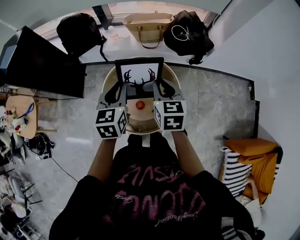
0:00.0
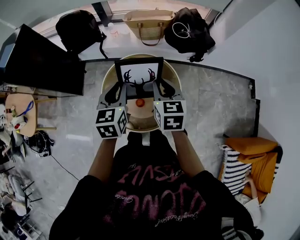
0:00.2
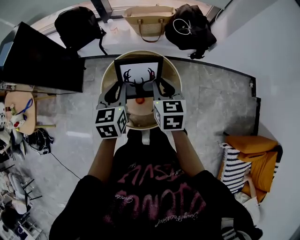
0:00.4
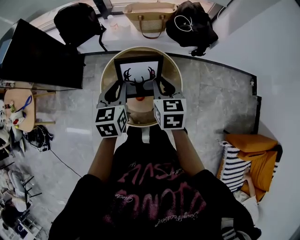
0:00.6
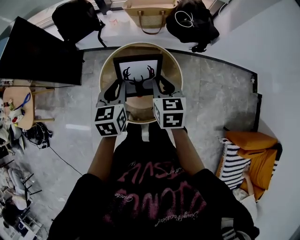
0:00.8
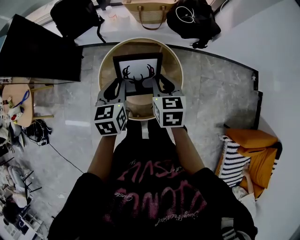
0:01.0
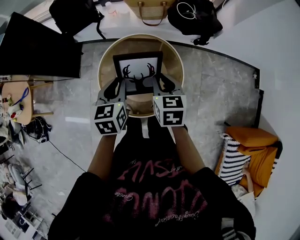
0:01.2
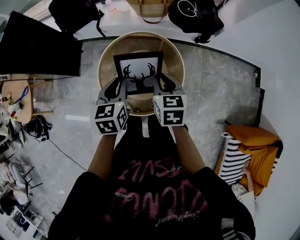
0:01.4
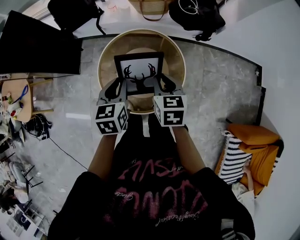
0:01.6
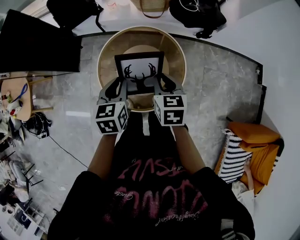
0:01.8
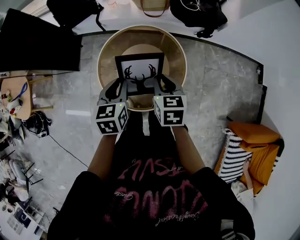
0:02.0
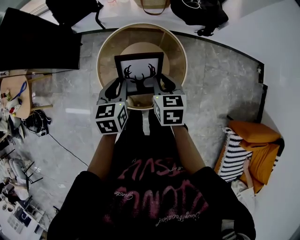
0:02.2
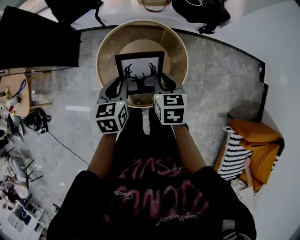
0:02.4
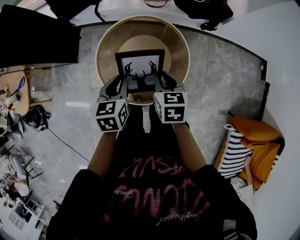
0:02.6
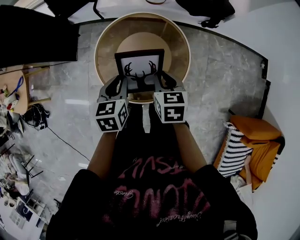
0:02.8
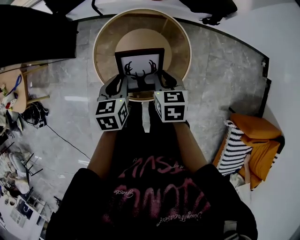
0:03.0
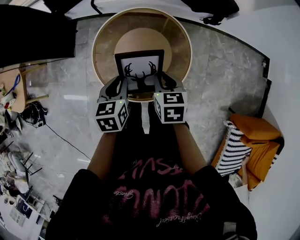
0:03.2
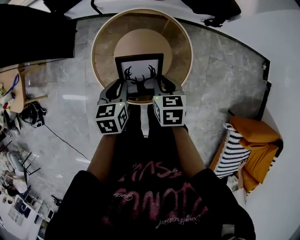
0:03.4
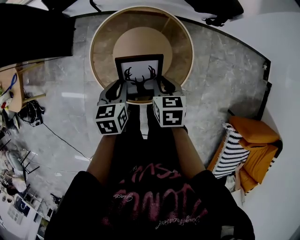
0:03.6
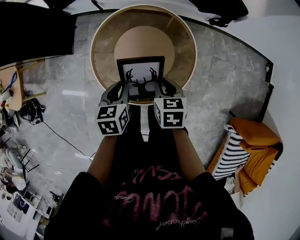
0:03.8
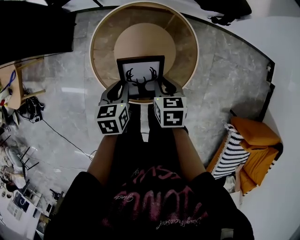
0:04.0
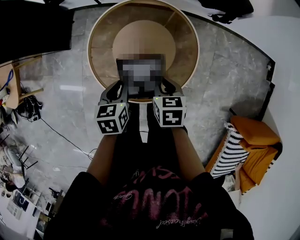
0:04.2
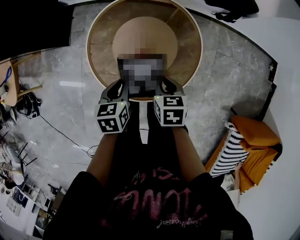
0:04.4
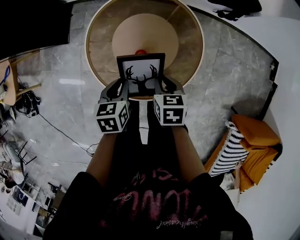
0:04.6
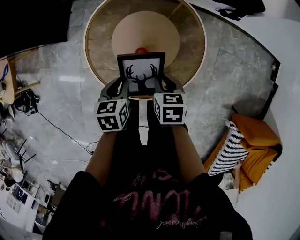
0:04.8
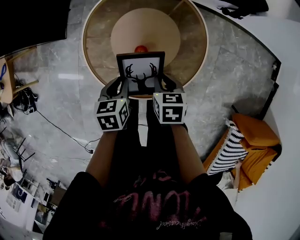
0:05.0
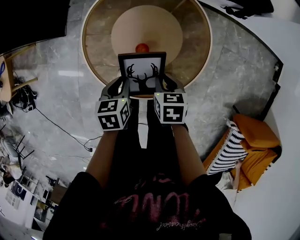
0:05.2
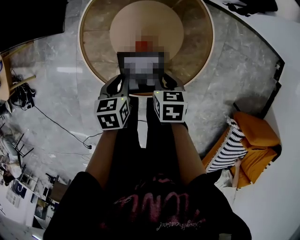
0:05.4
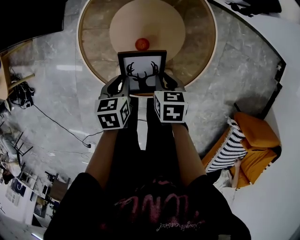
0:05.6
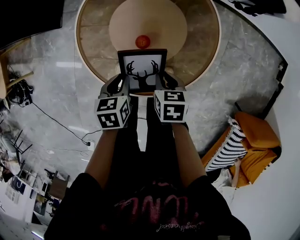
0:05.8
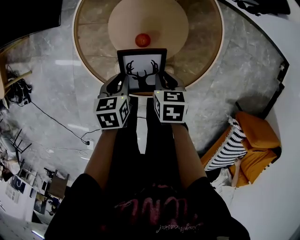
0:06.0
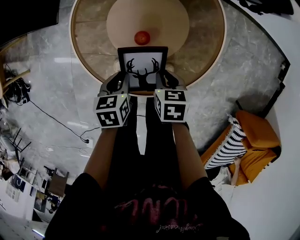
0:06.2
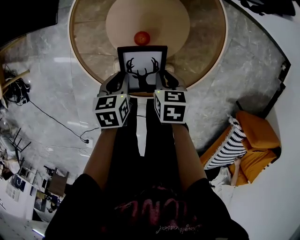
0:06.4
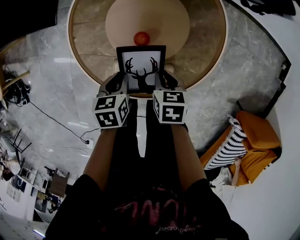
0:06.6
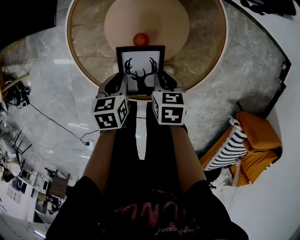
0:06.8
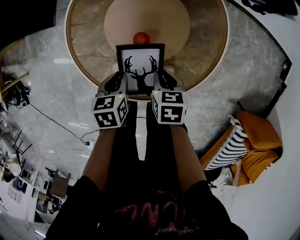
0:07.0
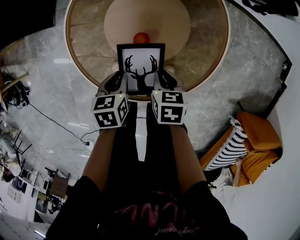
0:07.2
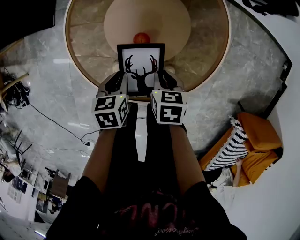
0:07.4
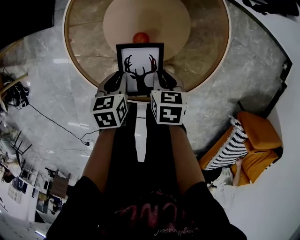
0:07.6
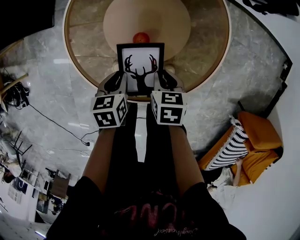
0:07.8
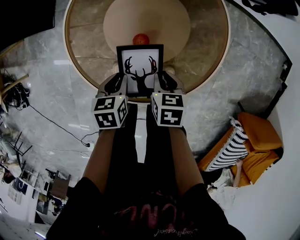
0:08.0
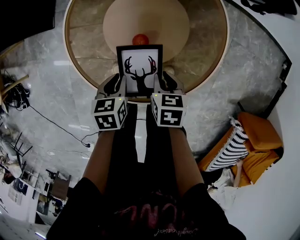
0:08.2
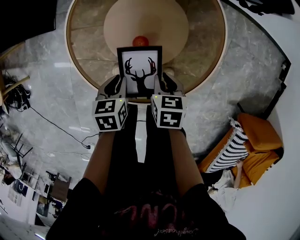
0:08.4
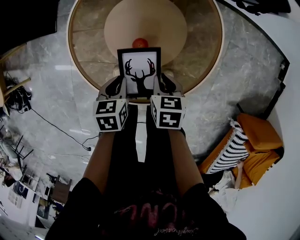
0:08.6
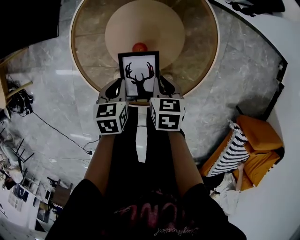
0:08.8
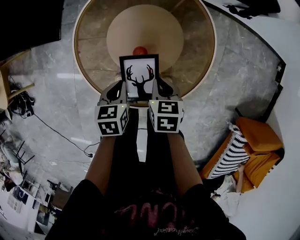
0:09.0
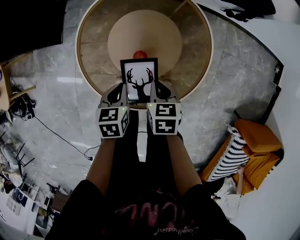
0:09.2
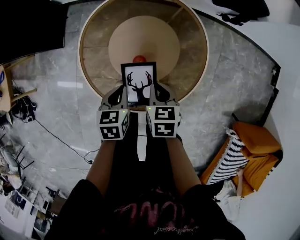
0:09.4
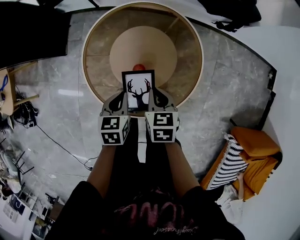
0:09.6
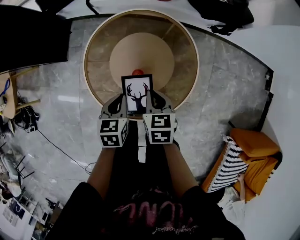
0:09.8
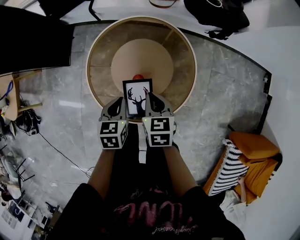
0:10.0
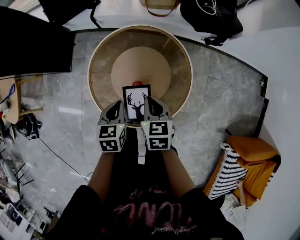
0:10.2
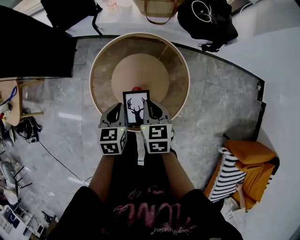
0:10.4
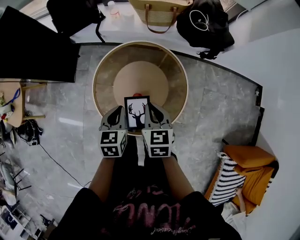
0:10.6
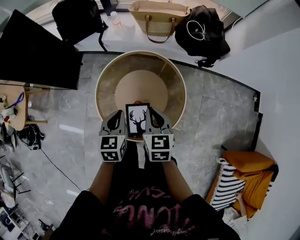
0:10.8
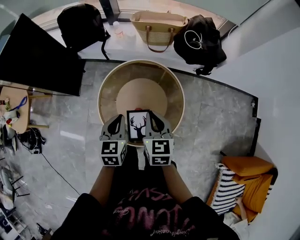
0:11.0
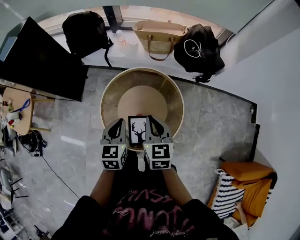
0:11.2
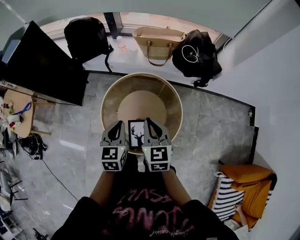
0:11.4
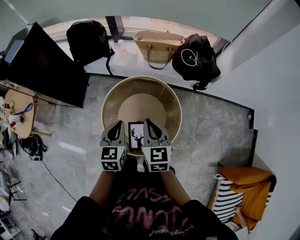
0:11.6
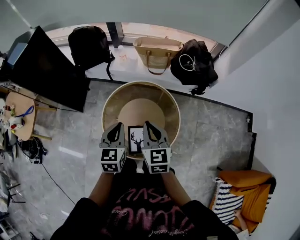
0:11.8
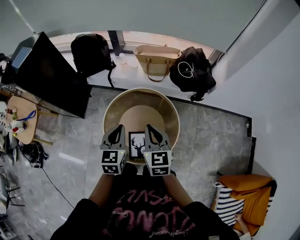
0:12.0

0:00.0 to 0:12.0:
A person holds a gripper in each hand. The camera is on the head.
0:00.0 to 0:01.6: The left gripper moves downward and backward, some 10 cm. Meanwhile the right gripper heads downward, covering about 10 cm.
0:01.6 to 0:03.0: The two grippers go about 10 cm downward.
0:03.0 to 0:04.4: The two grippers go about 10 cm downward.
0:04.4 to 0:06.0: The grippers both shift downward by some 15 cm.
0:06.0 to 0:07.6: The grippers stay close to where they were, moving slightly.
0:07.6 to 0:09.0: The two grippers go about 5 cm upward.
0:09.0 to 0:10.4: Both grippers move upward, about 20 cm. The right gripper changes its angle by some 20 degrees.
0:10.4 to 0:12.0: Both grippers travel together upward, roughly 20 cm. The left gripper rotates some 20 degrees; the right gripper rotates roughly 20 degrees.

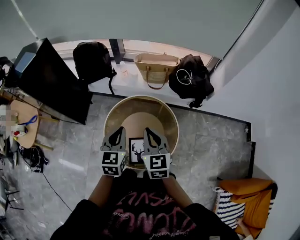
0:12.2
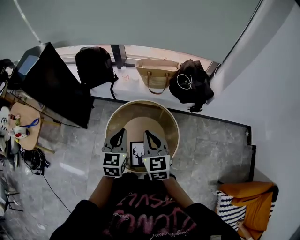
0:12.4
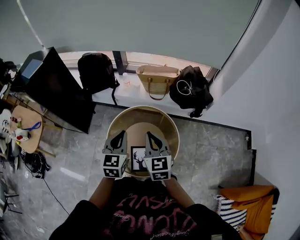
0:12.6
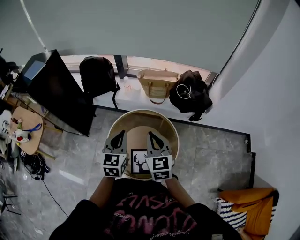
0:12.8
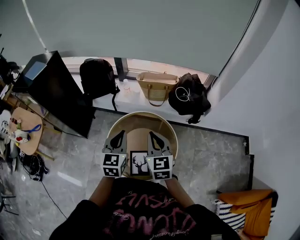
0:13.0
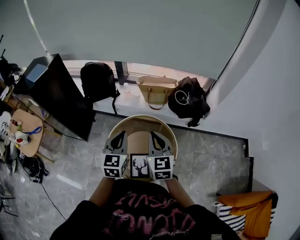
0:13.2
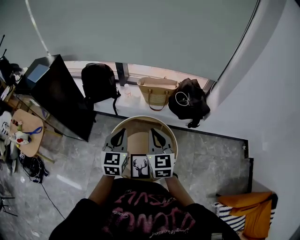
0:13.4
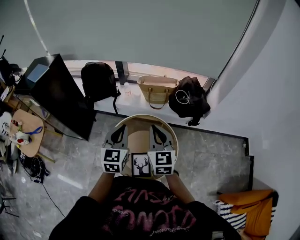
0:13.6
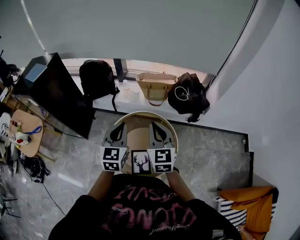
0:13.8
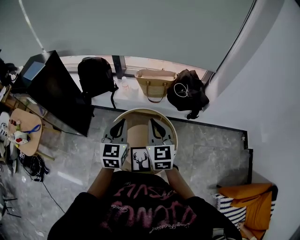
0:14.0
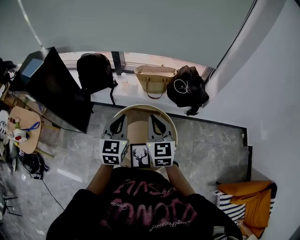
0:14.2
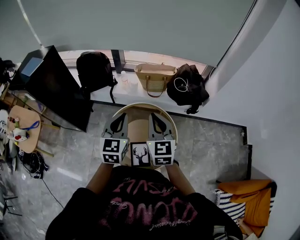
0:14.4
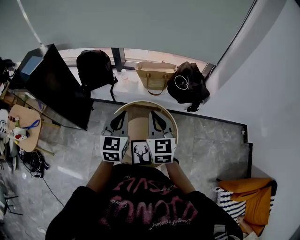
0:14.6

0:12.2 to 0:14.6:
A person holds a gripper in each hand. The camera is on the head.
0:12.2 to 0:13.4: The two grippers go about 10 cm upward.
0:13.4 to 0:14.6: There are only small adjustments of the grippers.

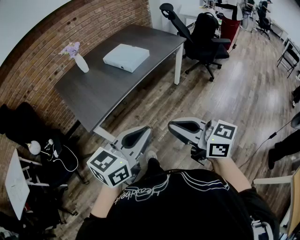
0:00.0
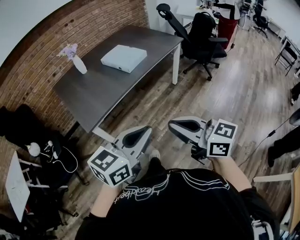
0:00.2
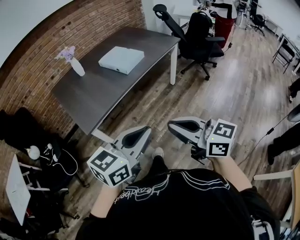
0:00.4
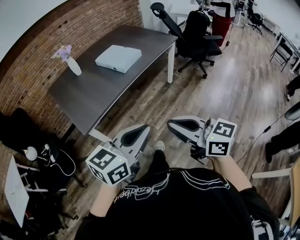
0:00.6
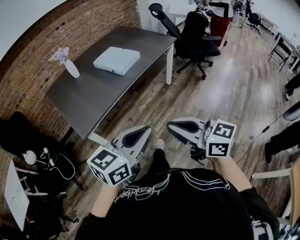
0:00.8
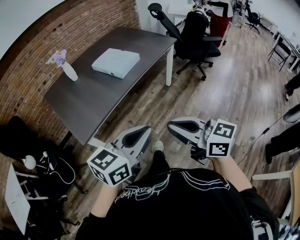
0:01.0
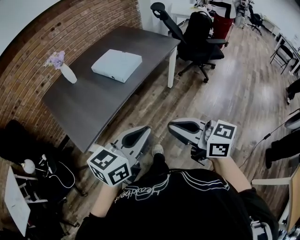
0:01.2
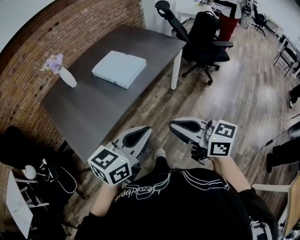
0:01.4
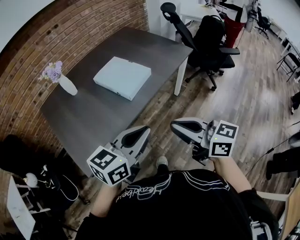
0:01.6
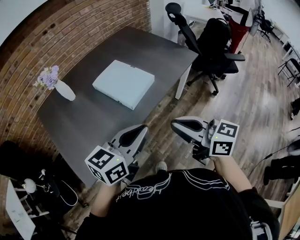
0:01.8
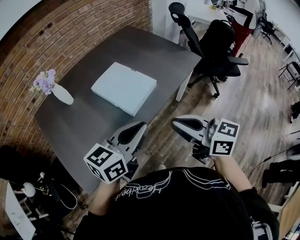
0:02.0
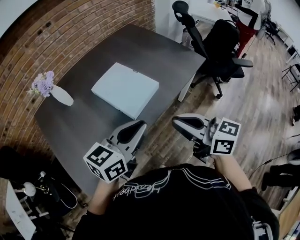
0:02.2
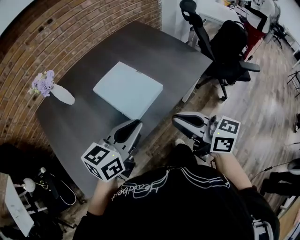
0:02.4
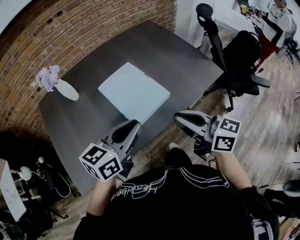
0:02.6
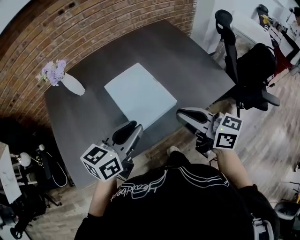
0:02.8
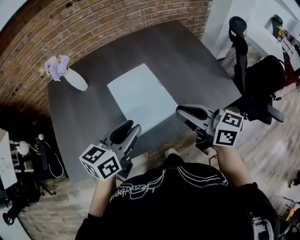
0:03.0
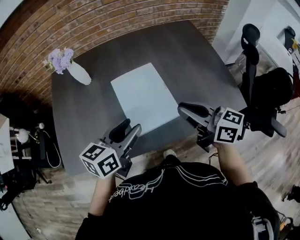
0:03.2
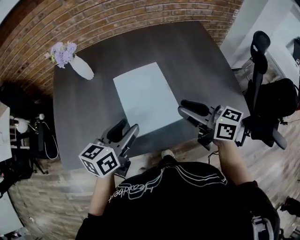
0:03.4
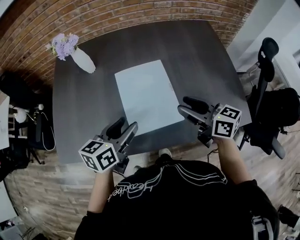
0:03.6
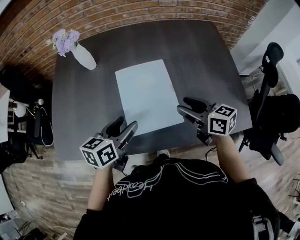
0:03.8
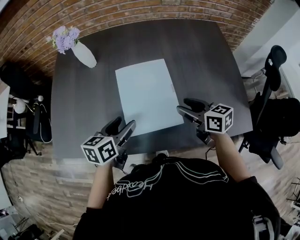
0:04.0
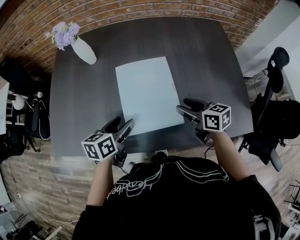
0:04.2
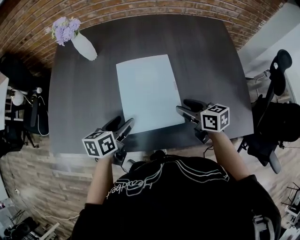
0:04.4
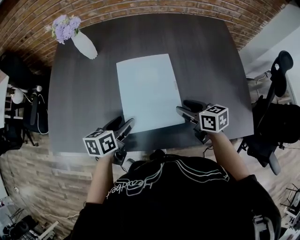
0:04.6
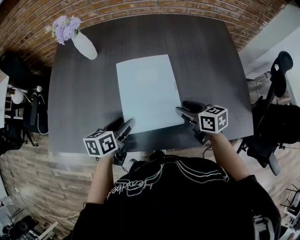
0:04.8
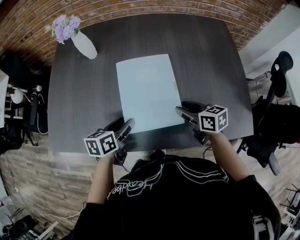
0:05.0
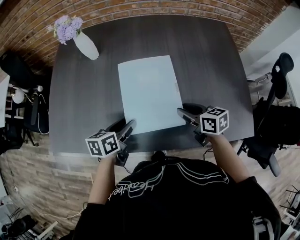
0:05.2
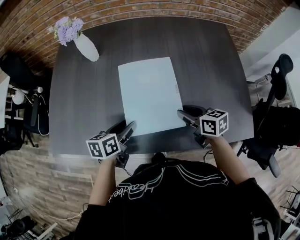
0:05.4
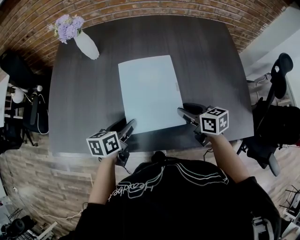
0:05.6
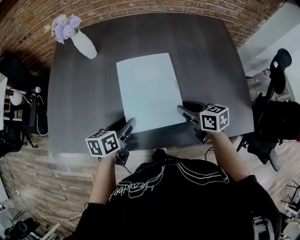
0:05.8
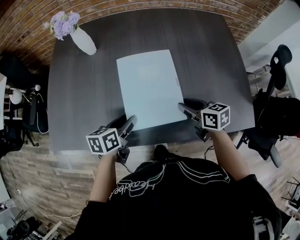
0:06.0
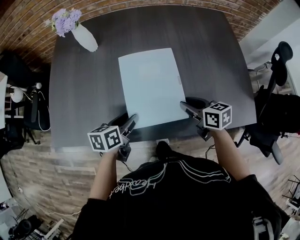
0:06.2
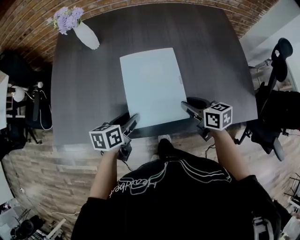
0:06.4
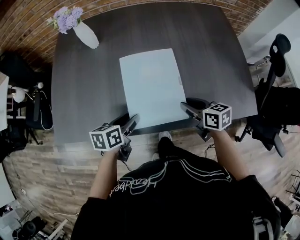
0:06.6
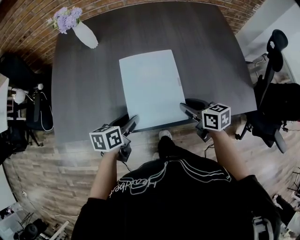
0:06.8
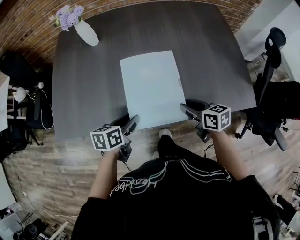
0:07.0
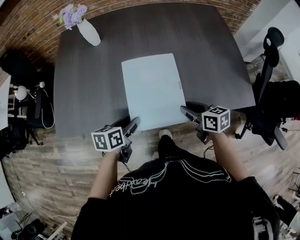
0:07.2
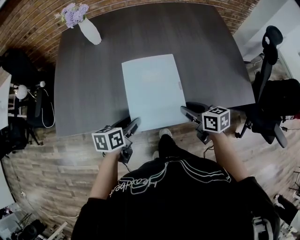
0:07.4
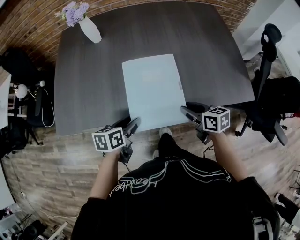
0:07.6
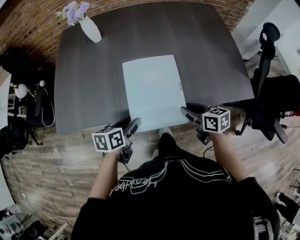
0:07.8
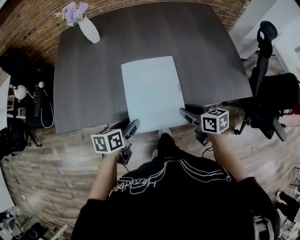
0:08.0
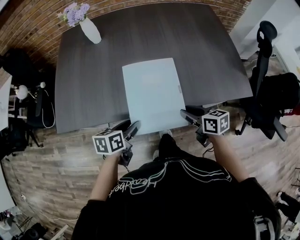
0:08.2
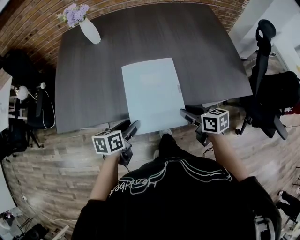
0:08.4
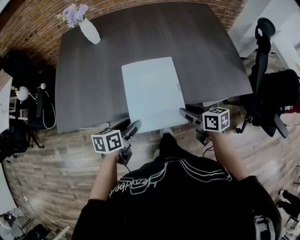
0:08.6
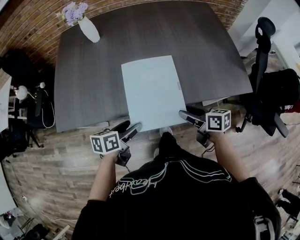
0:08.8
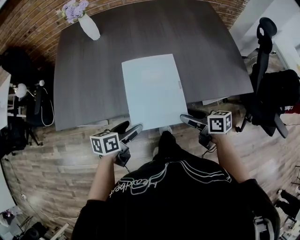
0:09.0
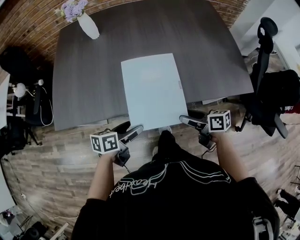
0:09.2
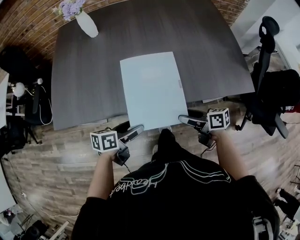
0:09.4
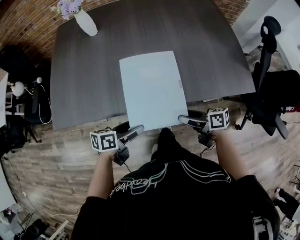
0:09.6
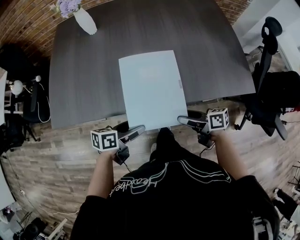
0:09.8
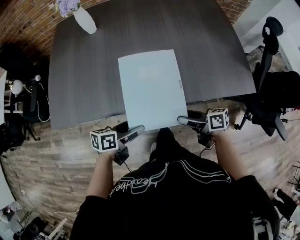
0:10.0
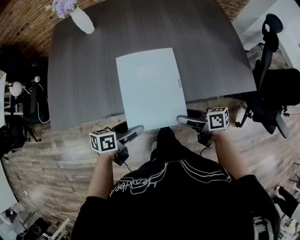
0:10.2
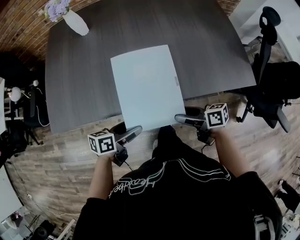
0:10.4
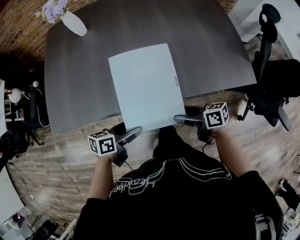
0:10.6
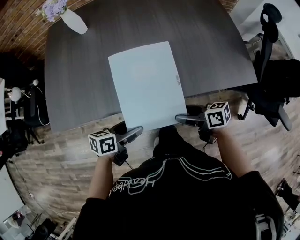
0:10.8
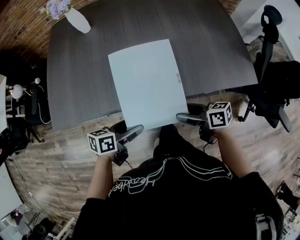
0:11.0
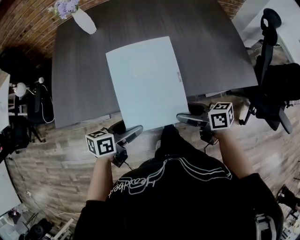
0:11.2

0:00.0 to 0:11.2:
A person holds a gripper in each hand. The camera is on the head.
0:00.0 to 0:01.6: The two grippers go roughly 30 cm forward.
0:01.6 to 0:03.2: The left gripper ends up some 35 cm from where it was, changes its angle by roughly 40 degrees, and opens. Meanwhile the right gripper changes place by about 40 cm, and rotates about 30 degrees.
0:03.2 to 0:04.8: Both grippers travel together downward, roughly 20 cm. The left gripper turns by roughly 30 degrees; the right gripper changes its angle by about 30 degrees, and opens its fingers.
0:04.8 to 0:06.4: The right gripper moves about 5 cm.
0:06.4 to 0:08.0: The grippers both shift backward by approximately 15 cm.
0:08.0 to 0:09.6: The left gripper opens up; the right gripper ends up approximately 5 cm from where it was, swivels roughly 30 degrees, and opens up.
0:09.6 to 0:11.2: The grippers stay close to where they were, moving slightly.
